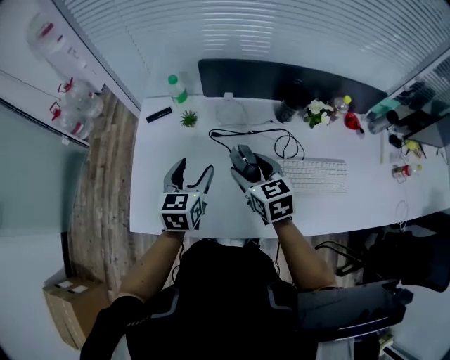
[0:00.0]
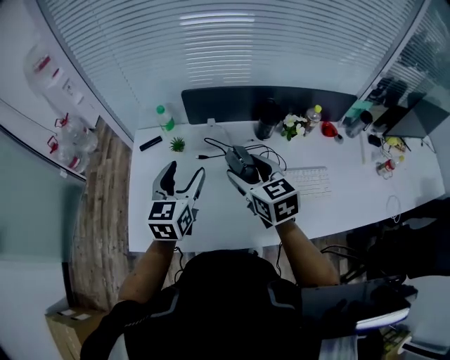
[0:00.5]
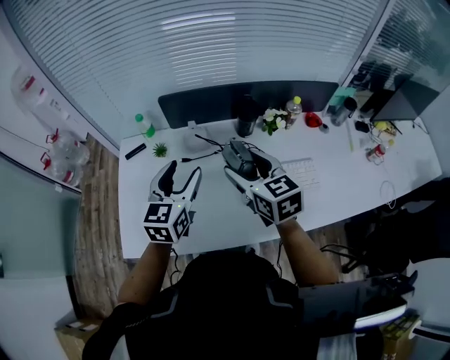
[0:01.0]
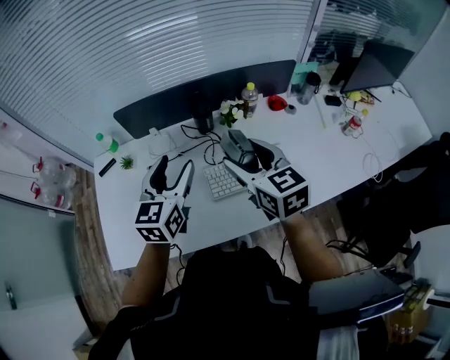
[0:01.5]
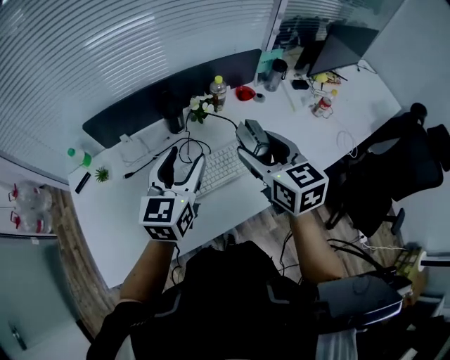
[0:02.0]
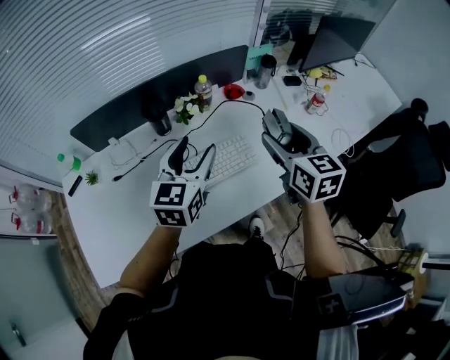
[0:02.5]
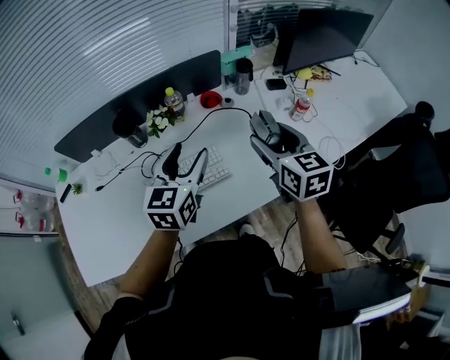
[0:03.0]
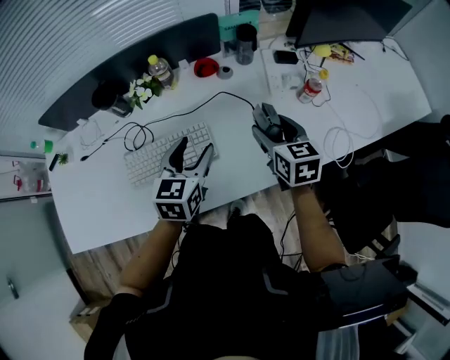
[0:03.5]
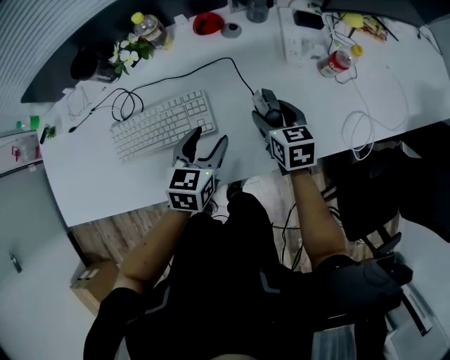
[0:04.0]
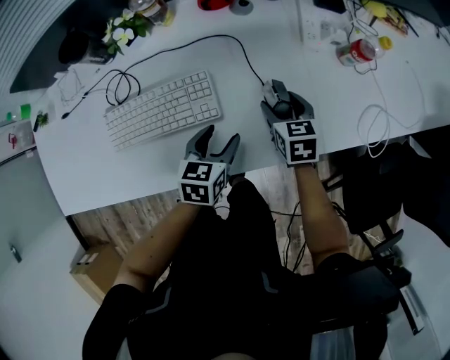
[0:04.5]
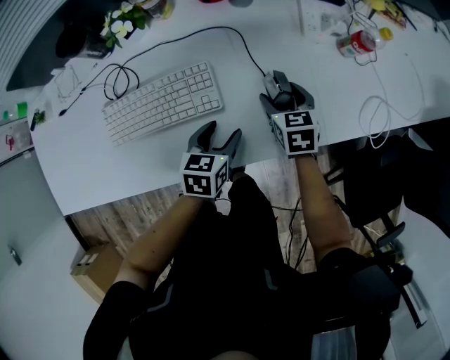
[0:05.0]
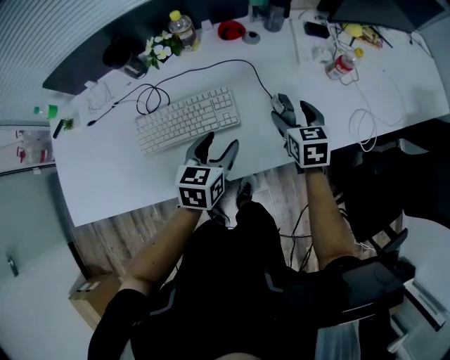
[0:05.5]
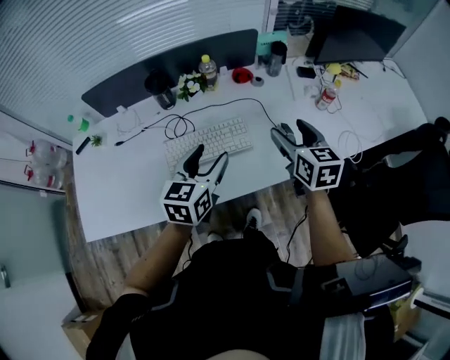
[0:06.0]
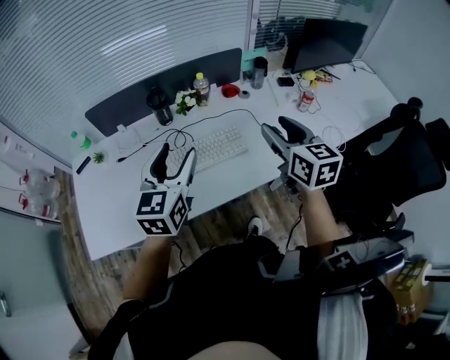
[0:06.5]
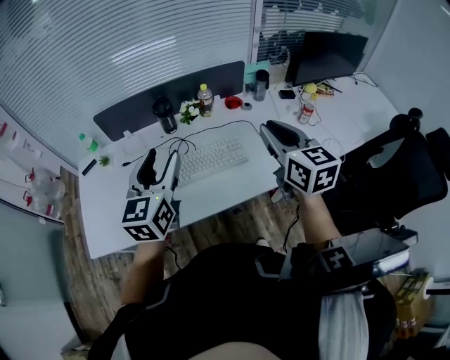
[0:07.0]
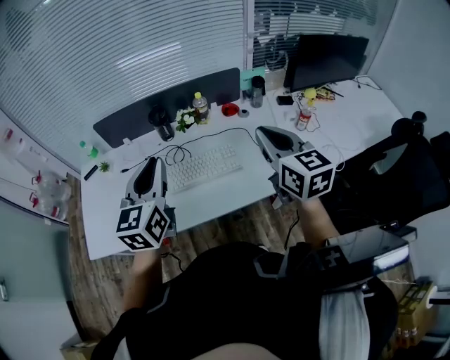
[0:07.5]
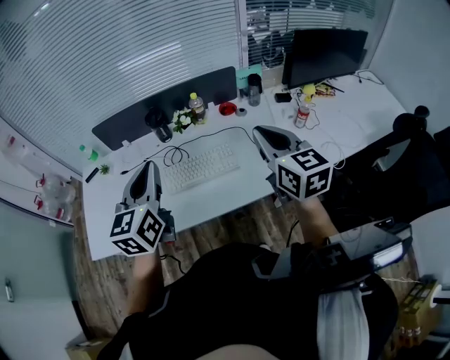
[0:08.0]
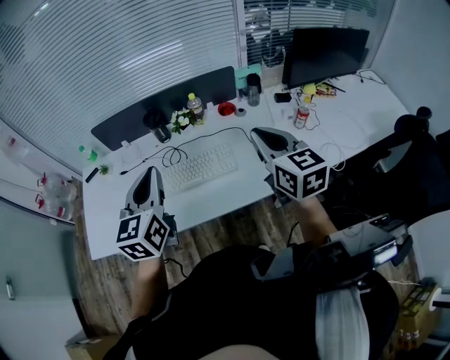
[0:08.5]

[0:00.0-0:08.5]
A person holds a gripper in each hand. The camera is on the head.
0:00.0 to 0:02.0: The right gripper shifts by about 35 cm, and swivels some 30 degrees. The left gripper ends up about 35 cm from where it was, and swivels some 30 degrees.
0:02.0 to 0:04.0: The left gripper heads to the right and downward, covering some 40 cm, and rotates approximately 30 degrees; the right gripper is displaced downward and to the right by roughly 40 cm, and changes its angle by roughly 20 degrees.
0:04.0 to 0:06.5: The right gripper travels upward and backward by roughly 35 cm, and turns by roughly 30 degrees, while the left gripper travels upward, to the left and backward by about 40 cm, and changes its angle by some 30 degrees.
0:06.5 to 0:08.5: The left gripper moves roughly 5 cm, and closes. Meanwhile the right gripper moves approximately 5 cm, and closes its fingers.

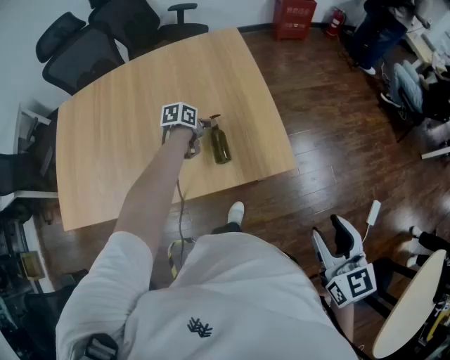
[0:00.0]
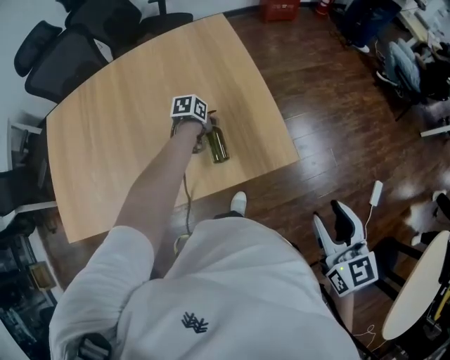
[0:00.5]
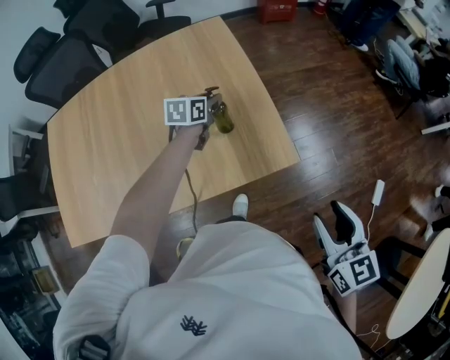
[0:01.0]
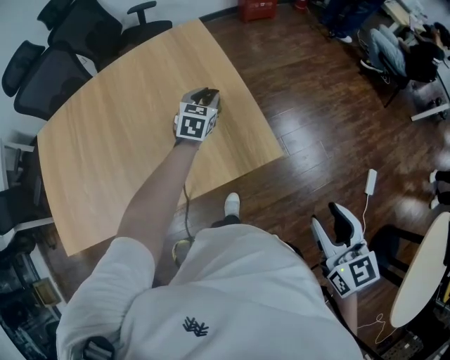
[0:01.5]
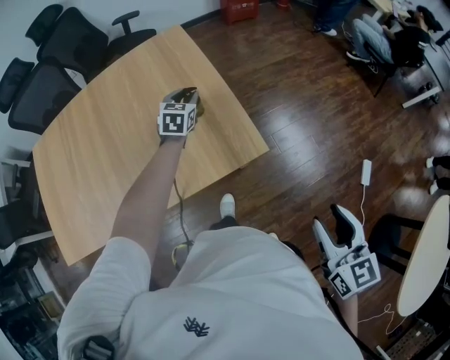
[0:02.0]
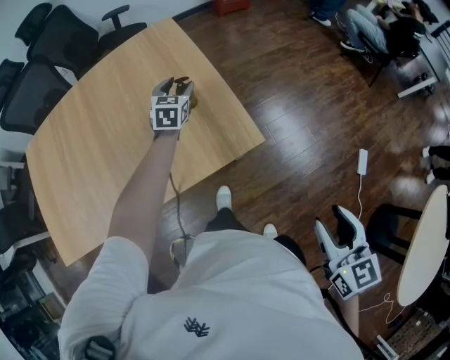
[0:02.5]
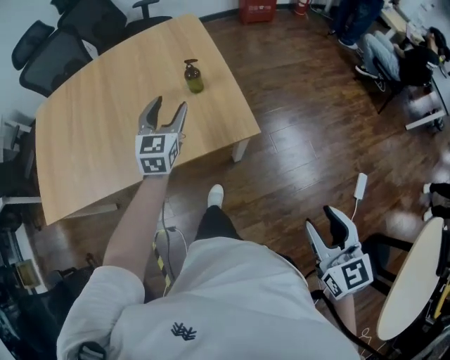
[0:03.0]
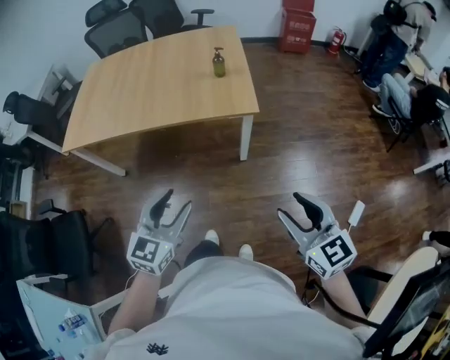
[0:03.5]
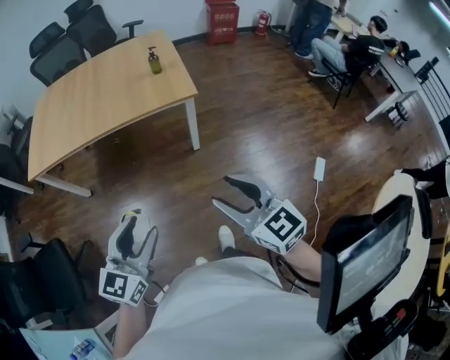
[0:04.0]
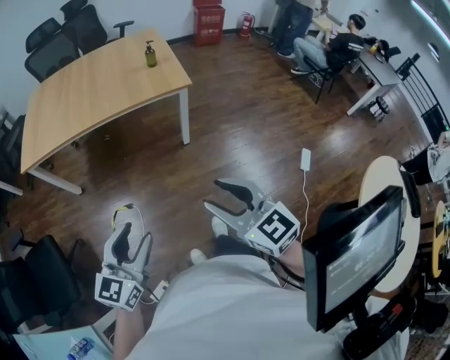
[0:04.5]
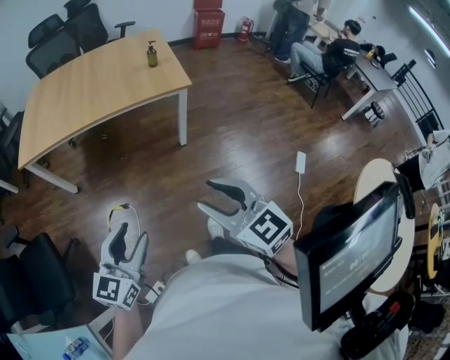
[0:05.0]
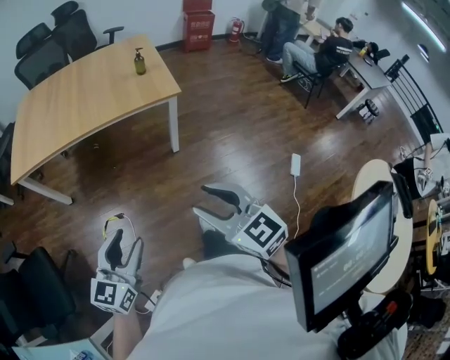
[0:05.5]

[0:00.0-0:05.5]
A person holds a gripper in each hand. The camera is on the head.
0:00.0 to 0:02.0: The left gripper goes some 15 cm upward, forward and to the right, and rolls clockwise, seen from behind, by some 40 degrees, while the right gripper shifts by some 5 cm.
0:02.0 to 0:03.5: The right gripper heads backward, covering roughly 15 cm, and swivels approximately 40 degrees. Meanwhile the left gripper goes some 60 cm backward.
0:03.5 to 0:05.5: The right gripper shifts some 20 cm to the left and backward; the left gripper shifts some 20 cm backward and to the left.

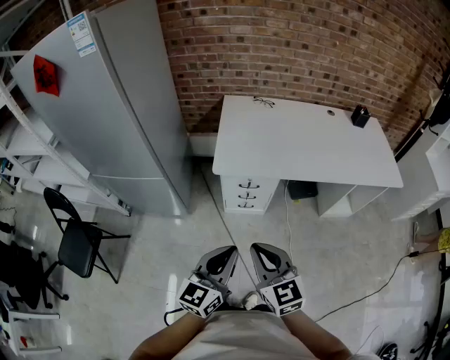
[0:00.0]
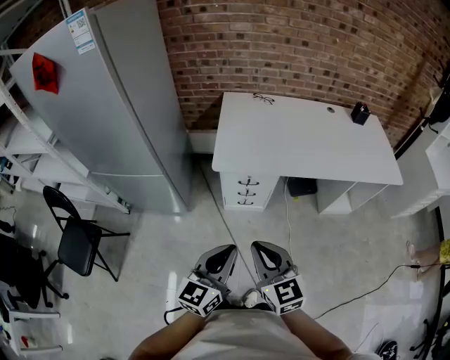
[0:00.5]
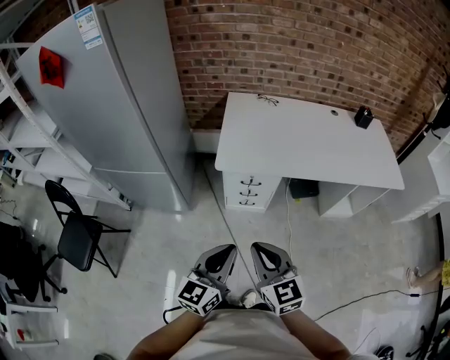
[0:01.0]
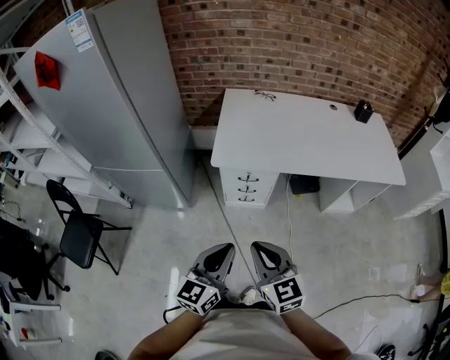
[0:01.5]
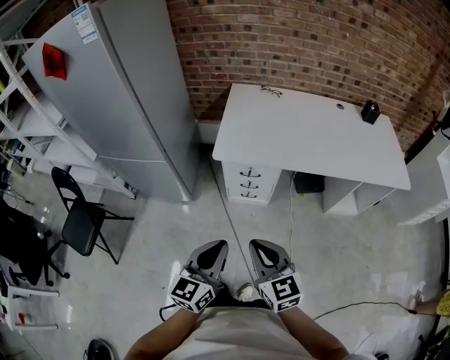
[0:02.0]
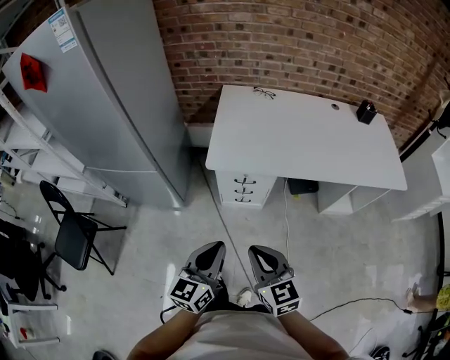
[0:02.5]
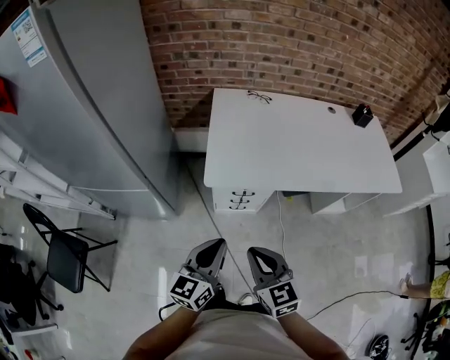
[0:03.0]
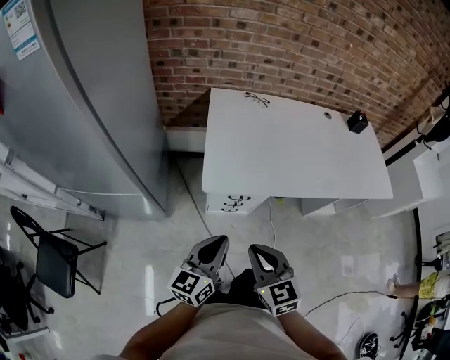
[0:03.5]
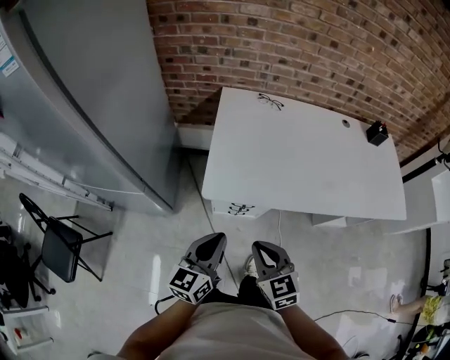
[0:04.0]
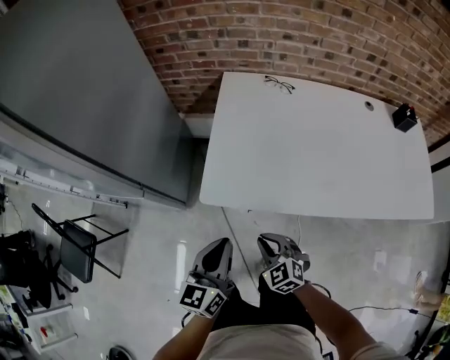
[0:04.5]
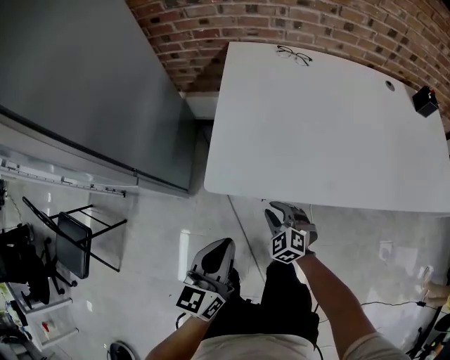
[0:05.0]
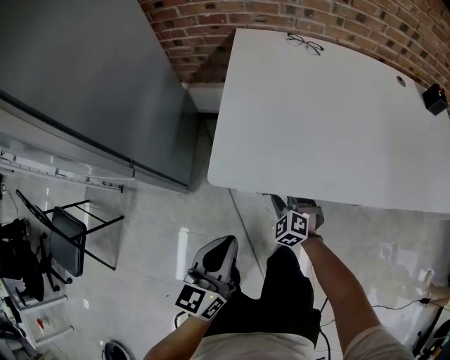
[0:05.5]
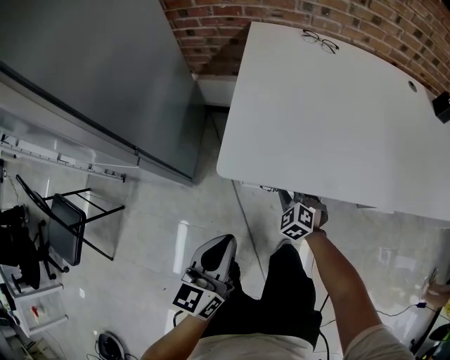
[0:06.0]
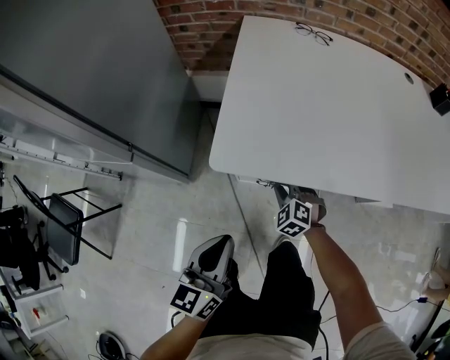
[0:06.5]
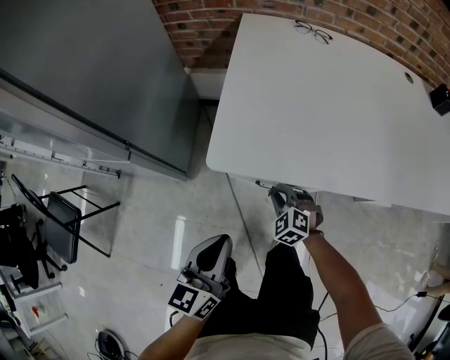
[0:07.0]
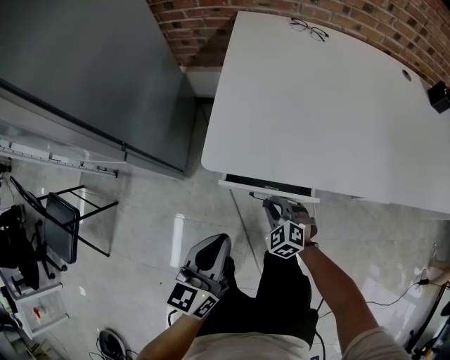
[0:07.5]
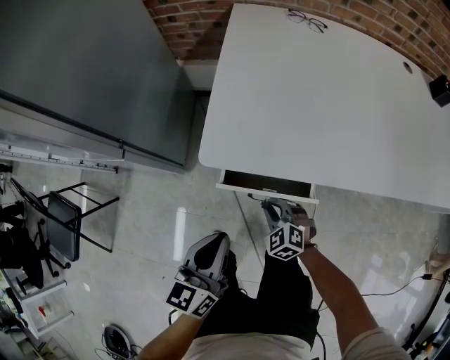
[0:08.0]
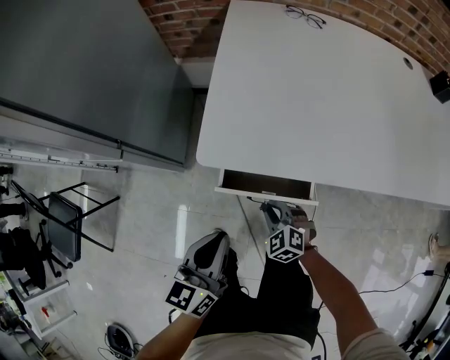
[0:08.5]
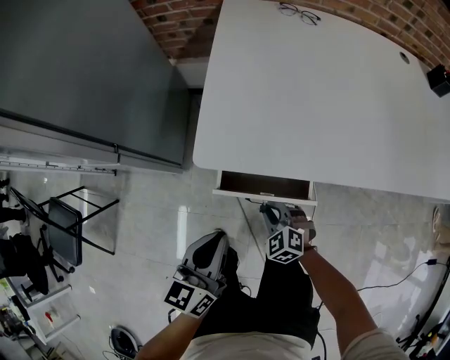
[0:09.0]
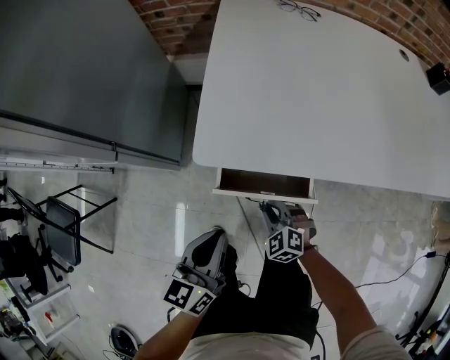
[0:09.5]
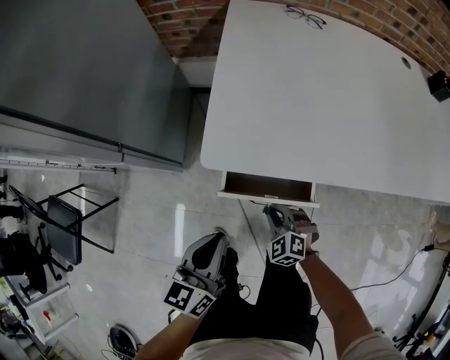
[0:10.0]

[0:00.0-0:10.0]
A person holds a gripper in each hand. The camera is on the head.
0:00.0 to 0:02.0: The right gripper ends up roughly 5 cm from where it was.
0:02.0 to 0:04.0: The grippers both shift forward by approximately 25 cm.
0:04.0 to 0:06.0: The right gripper heads downward and forward, covering roughly 40 cm, and changes its angle by some 40 degrees. Meanwhile the left gripper heads downward, covering approximately 20 cm.
0:06.0 to 0:08.0: The right gripper goes some 10 cm backward.
0:08.0 to 0:10.0: The grippers move only a little.

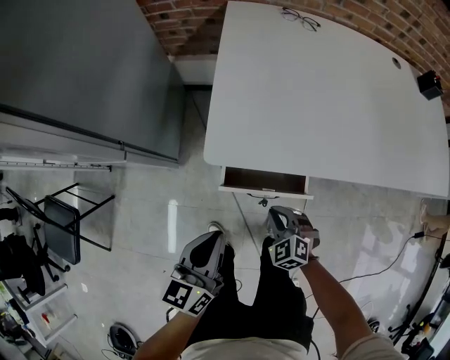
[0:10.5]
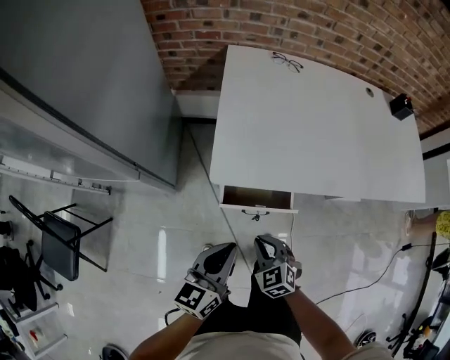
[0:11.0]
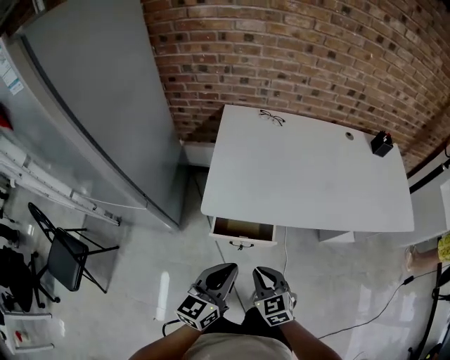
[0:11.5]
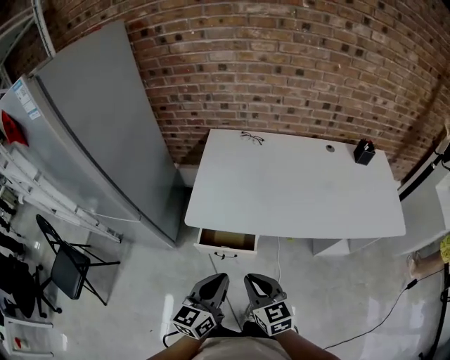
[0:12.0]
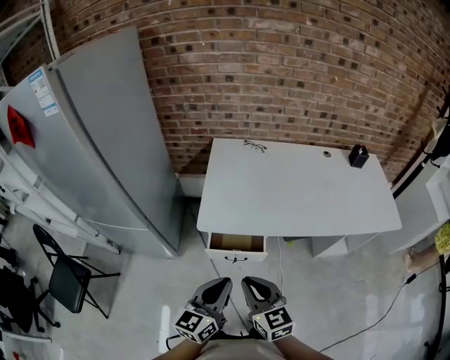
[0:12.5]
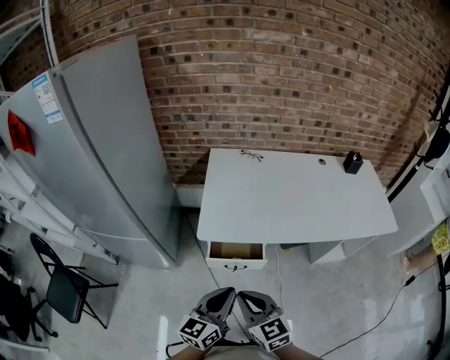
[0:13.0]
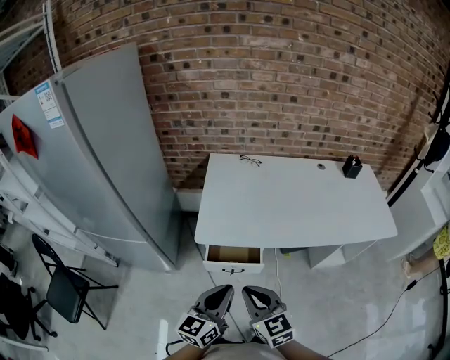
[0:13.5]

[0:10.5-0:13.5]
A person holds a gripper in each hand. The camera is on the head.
0:10.5 to 0:12.0: The left gripper moves upward, to the right and backward, roughly 25 cm, while the right gripper travels upward by about 30 cm, and swivels some 50 degrees.
0:12.0 to 0:13.5: The left gripper goes approximately 5 cm to the left. Meanwhile the right gripper travels to the left and upward by some 10 cm.
